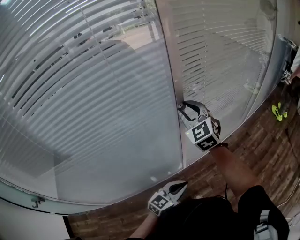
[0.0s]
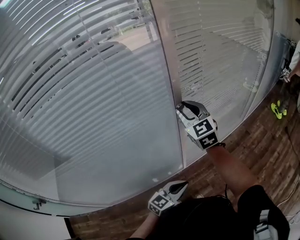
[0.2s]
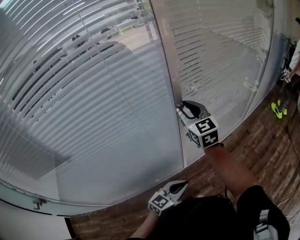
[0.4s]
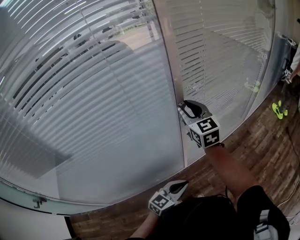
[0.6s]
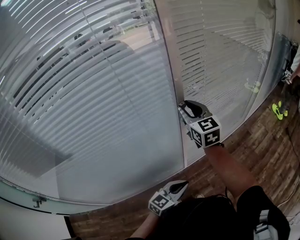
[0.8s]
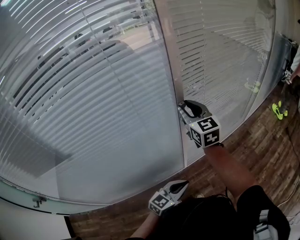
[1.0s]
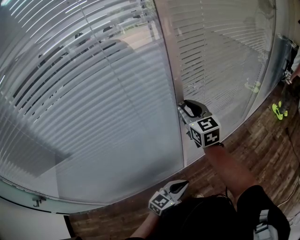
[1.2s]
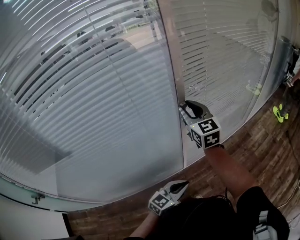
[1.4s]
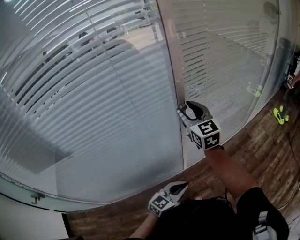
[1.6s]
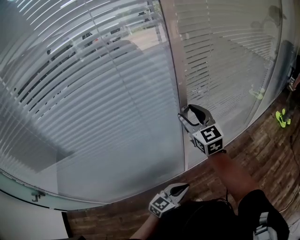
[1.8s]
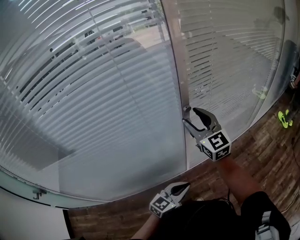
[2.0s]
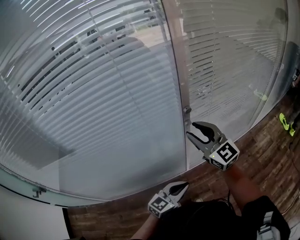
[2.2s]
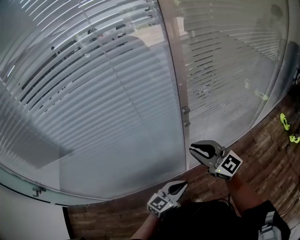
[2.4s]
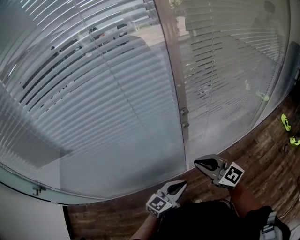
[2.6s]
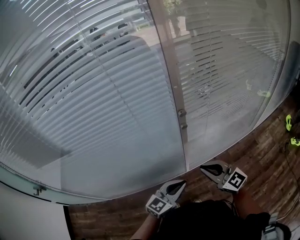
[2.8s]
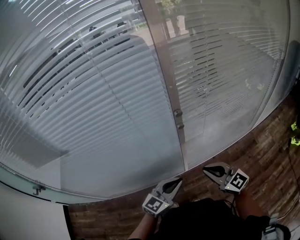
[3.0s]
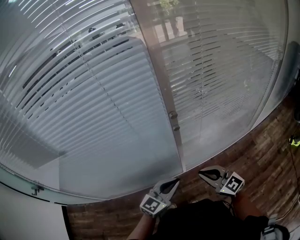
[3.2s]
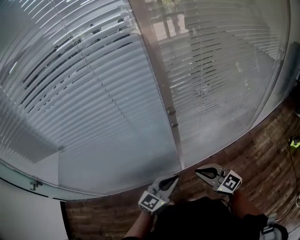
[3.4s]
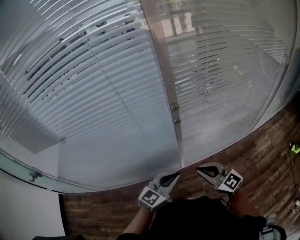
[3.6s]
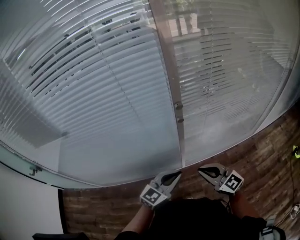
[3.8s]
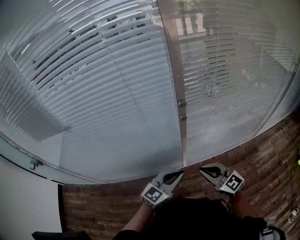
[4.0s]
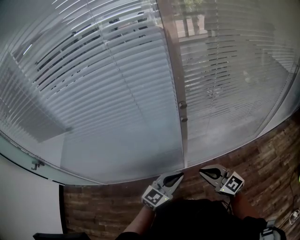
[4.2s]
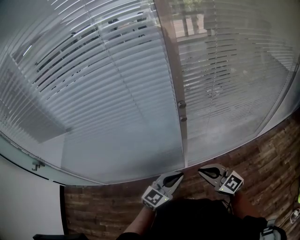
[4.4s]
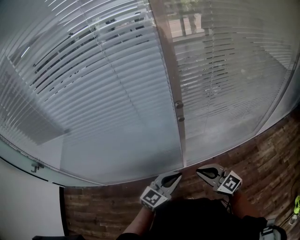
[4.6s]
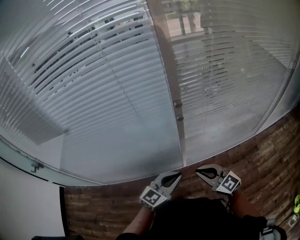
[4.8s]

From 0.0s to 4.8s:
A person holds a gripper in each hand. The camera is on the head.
From 0.0s to 1.6s: The right gripper swivels some 30 degrees.
From 1.6s to 3.2s: The right gripper changes place by about 25 cm, swivels approximately 40 degrees, and closes, while the left gripper changes place by roughly 5 cm.
From 3.2s to 4.8s: The grippers make only small movements.

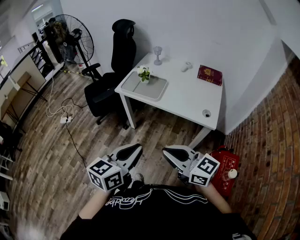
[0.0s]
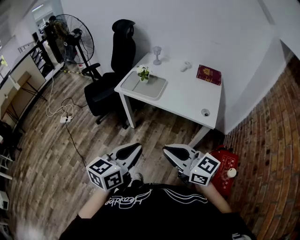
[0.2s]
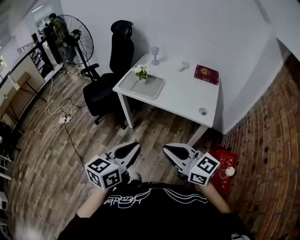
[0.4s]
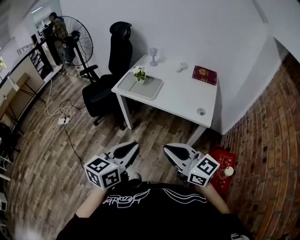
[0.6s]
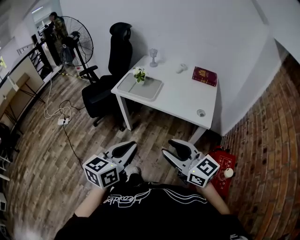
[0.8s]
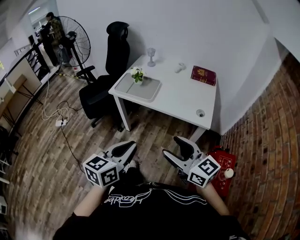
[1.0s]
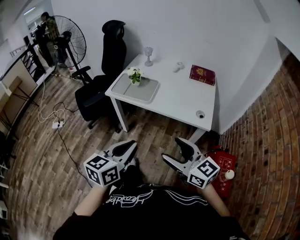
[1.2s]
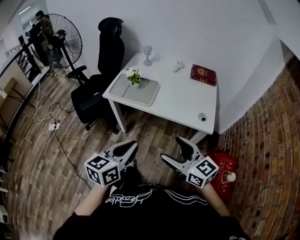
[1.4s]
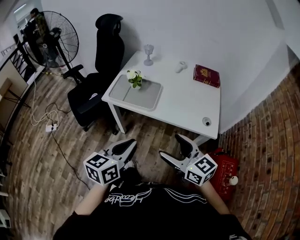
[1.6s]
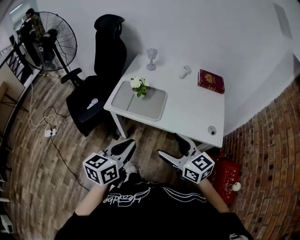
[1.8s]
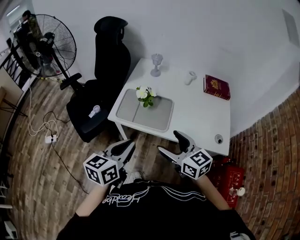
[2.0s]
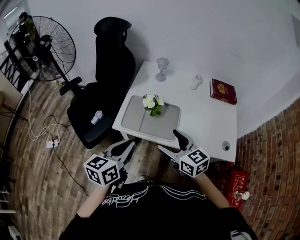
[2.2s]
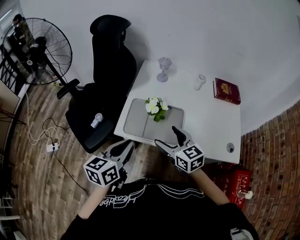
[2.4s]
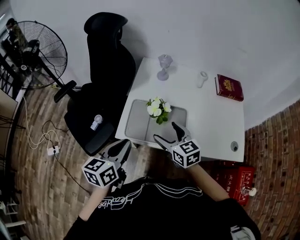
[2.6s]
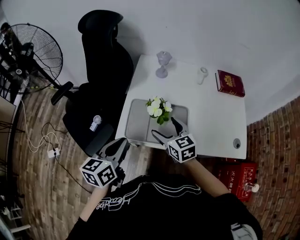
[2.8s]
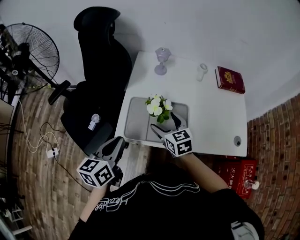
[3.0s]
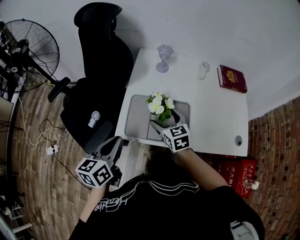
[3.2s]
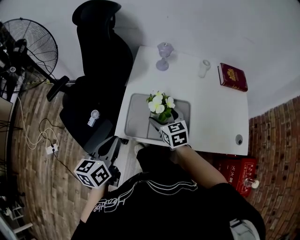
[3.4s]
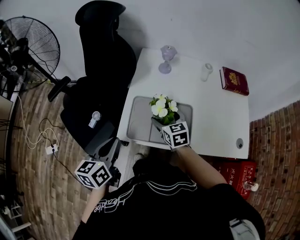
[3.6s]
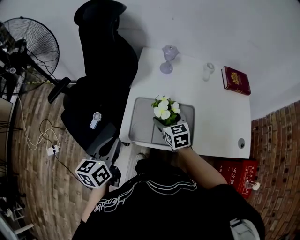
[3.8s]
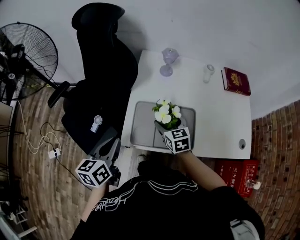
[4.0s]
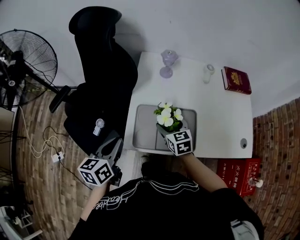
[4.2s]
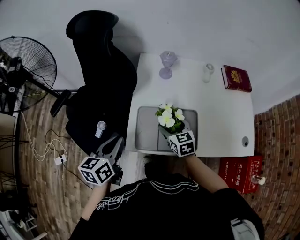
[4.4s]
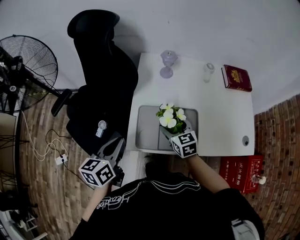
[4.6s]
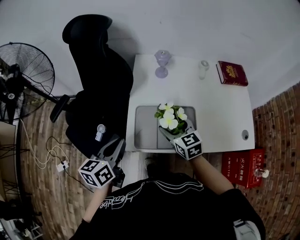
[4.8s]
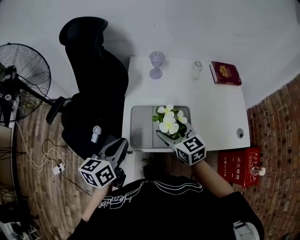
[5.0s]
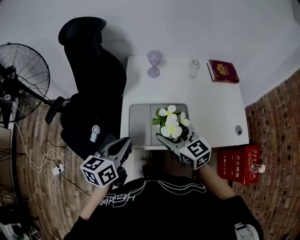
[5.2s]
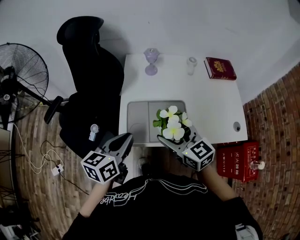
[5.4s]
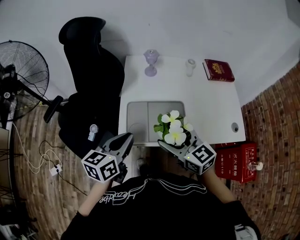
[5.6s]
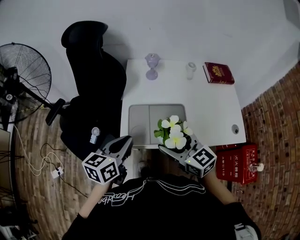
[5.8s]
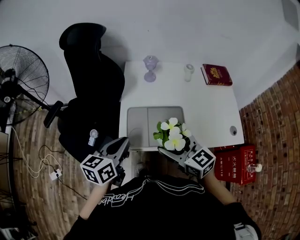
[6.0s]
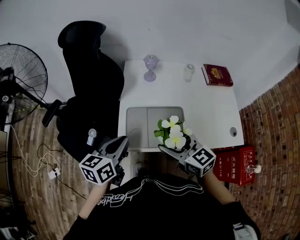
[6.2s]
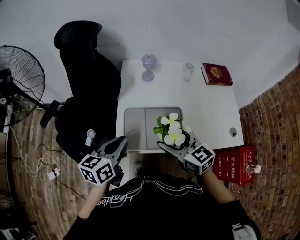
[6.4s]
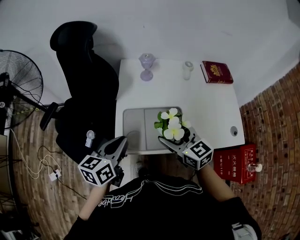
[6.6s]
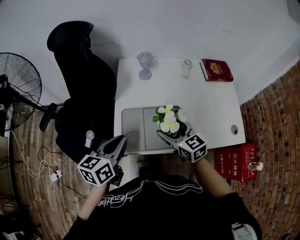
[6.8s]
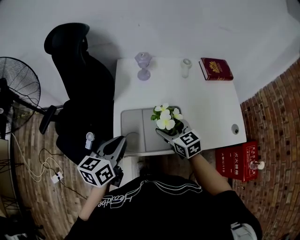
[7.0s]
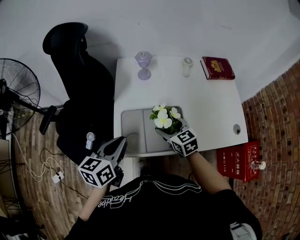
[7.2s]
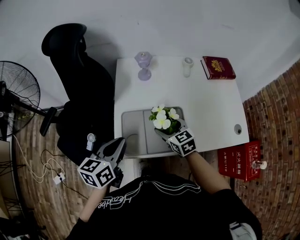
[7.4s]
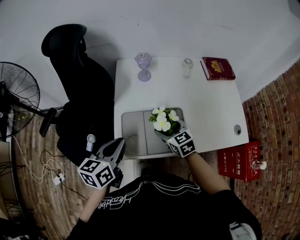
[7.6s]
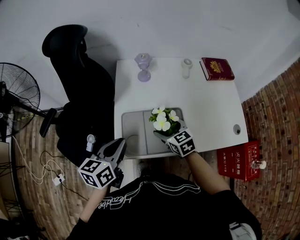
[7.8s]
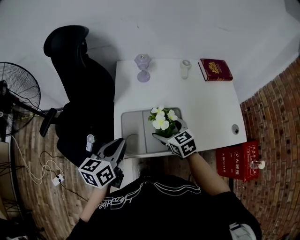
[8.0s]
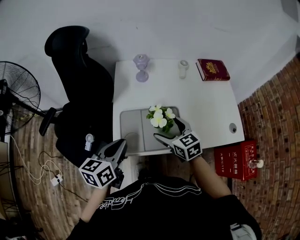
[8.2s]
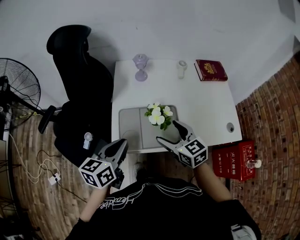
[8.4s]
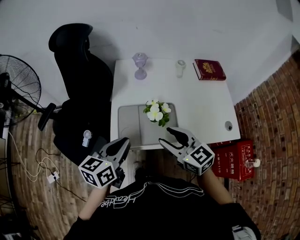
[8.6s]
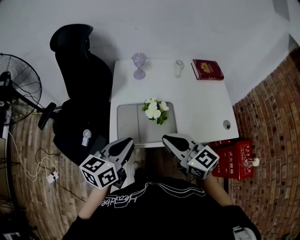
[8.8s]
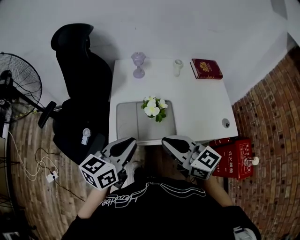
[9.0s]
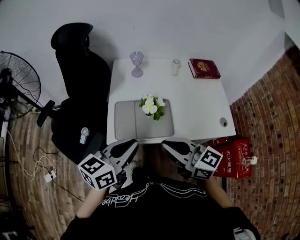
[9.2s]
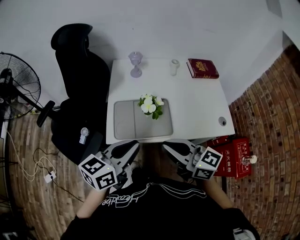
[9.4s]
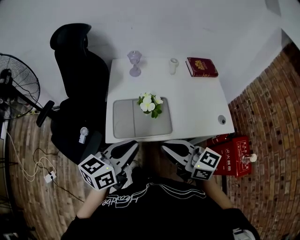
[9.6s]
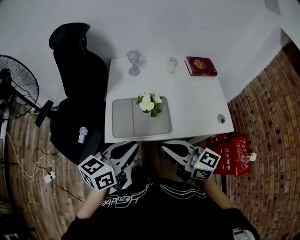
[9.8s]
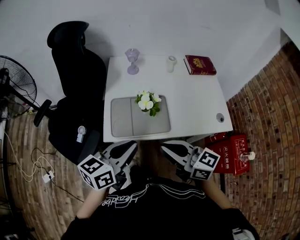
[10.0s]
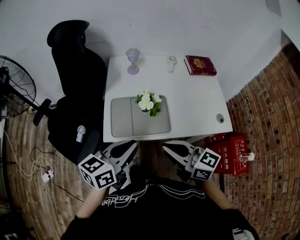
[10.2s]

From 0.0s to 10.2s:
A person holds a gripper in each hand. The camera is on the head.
From 0.0s to 1.4s: The grippers both shift forward by some 10 cm. The right gripper opens up.
From 1.4s to 3.0s: The two grippers travel together, forward and to the left, roughly 50 cm. The right gripper swivels approximately 30 degrees.
From 3.0s to 4.4s: The right gripper changes place by roughly 5 cm. Meanwhile the left gripper moves forward and to the left, roughly 10 cm.
From 4.4s to 5.8s: The left gripper is displaced to the right by approximately 5 cm, while the right gripper heads upward and backward, covering about 20 cm, and rotates roughly 20 degrees.
From 5.8s to 7.2s: The left gripper moves about 5 cm; the right gripper heads downward and forward, covering roughly 20 cm.
From 7.2s to 8.8s: The right gripper heads upward and backward, covering some 20 cm, turns by approximately 20 degrees, and closes up. The left gripper moves backward and to the right, roughly 10 cm.
From 8.8s to 10.2s: The grippers both shift backward by approximately 5 cm.

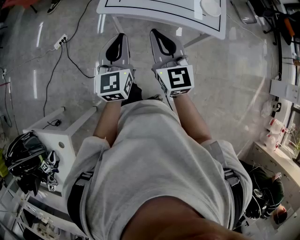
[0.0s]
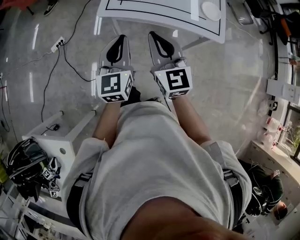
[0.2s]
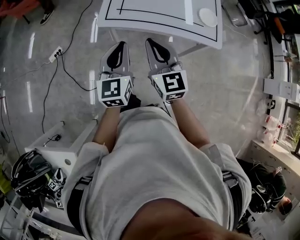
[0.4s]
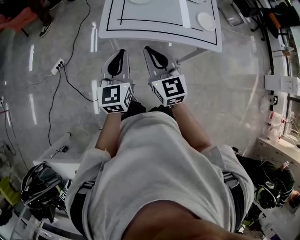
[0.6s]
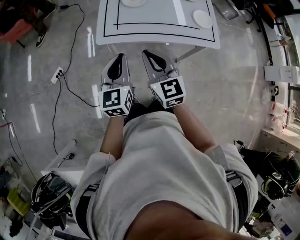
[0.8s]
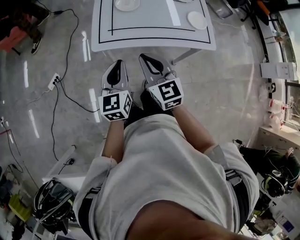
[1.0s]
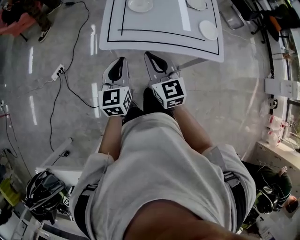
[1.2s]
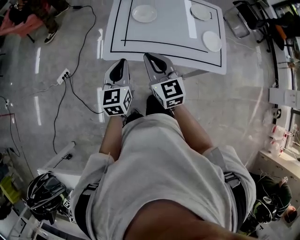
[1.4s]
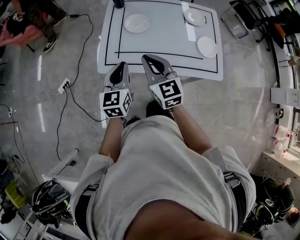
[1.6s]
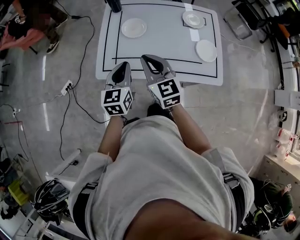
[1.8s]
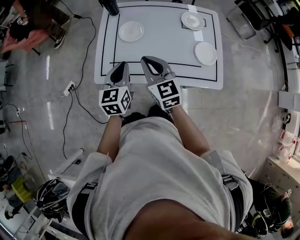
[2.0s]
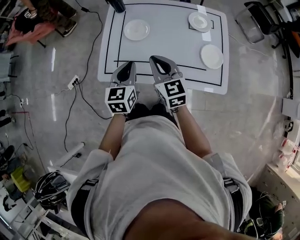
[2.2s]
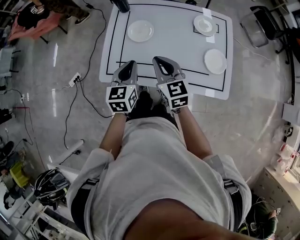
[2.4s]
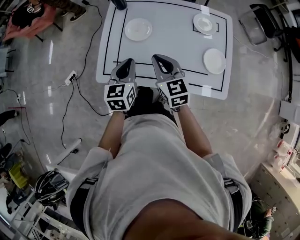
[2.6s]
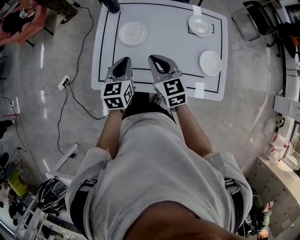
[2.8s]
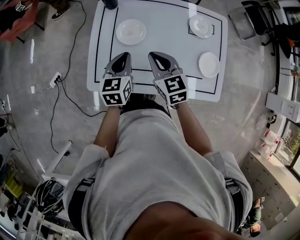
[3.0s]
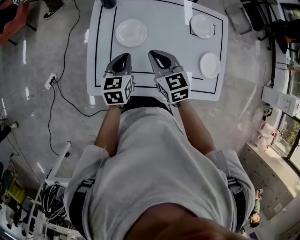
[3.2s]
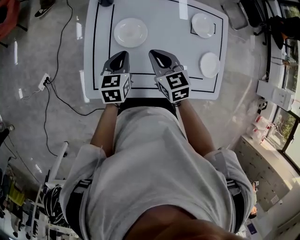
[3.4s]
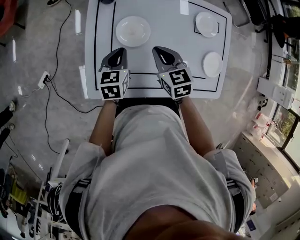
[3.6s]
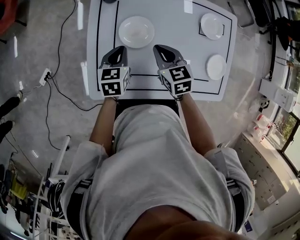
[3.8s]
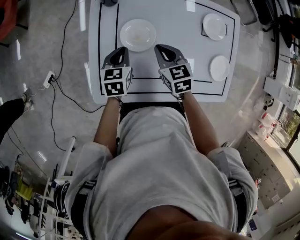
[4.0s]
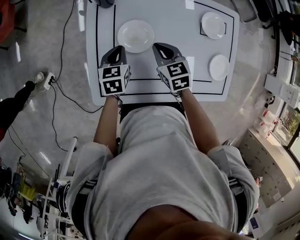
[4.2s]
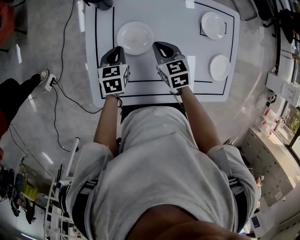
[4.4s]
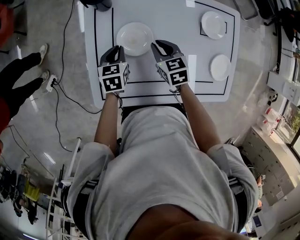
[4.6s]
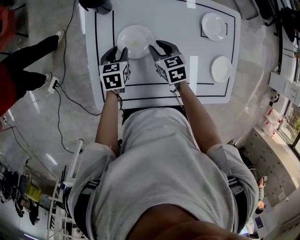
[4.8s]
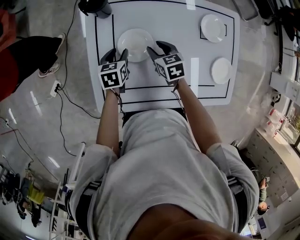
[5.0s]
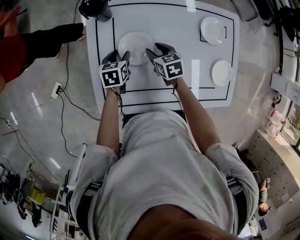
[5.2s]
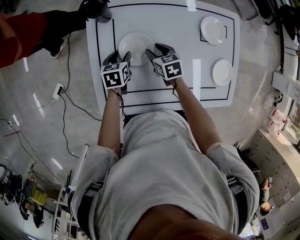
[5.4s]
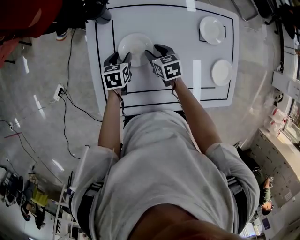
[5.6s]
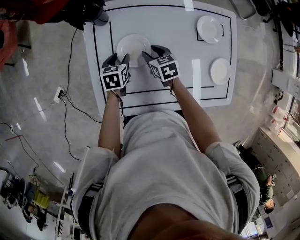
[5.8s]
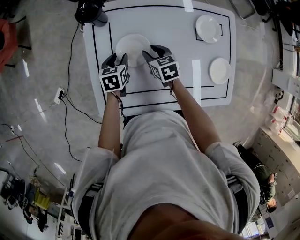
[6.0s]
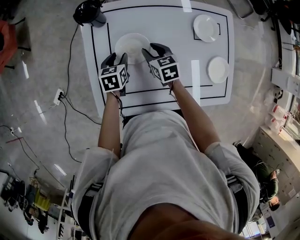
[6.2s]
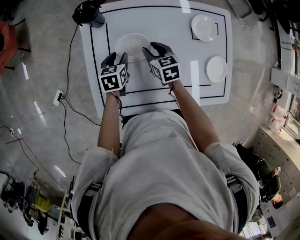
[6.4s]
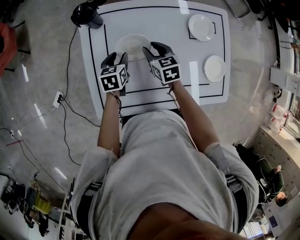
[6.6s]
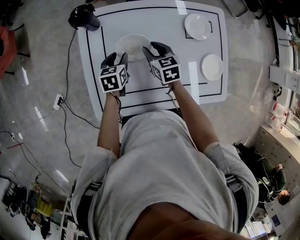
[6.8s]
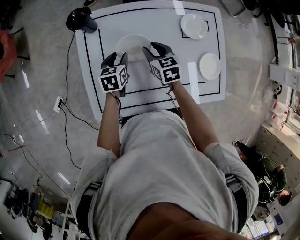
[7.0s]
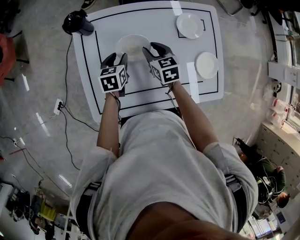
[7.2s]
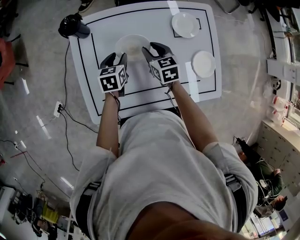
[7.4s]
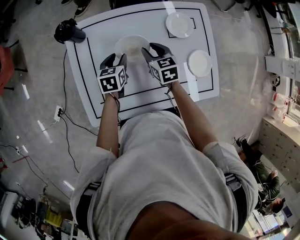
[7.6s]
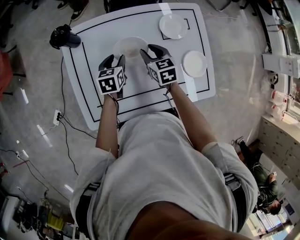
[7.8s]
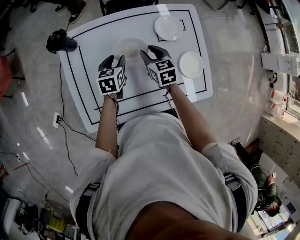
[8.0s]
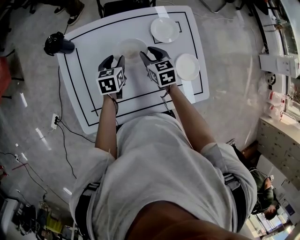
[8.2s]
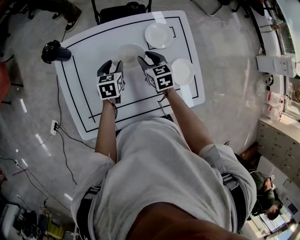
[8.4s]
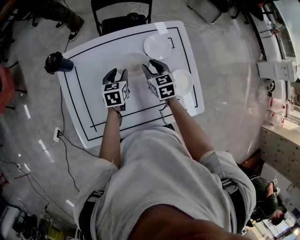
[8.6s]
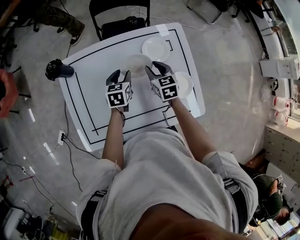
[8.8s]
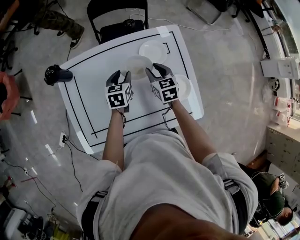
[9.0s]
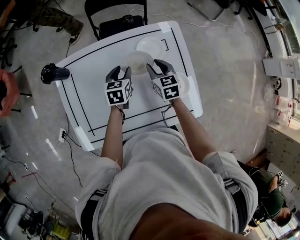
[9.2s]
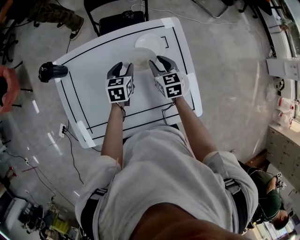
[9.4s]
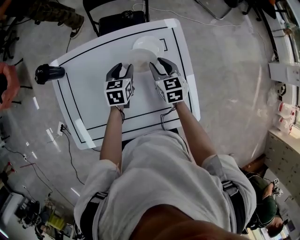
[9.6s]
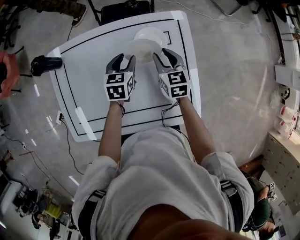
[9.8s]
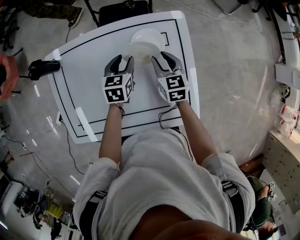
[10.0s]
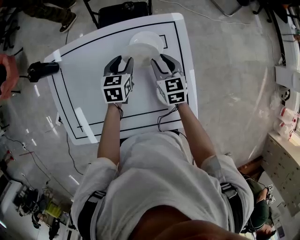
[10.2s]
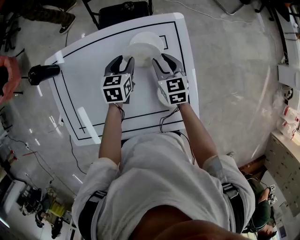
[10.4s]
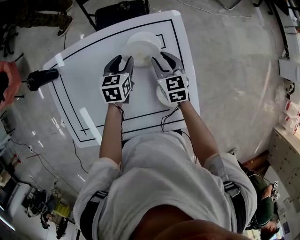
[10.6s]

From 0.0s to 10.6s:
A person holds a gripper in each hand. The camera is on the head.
From 0.0s to 1.6s: The two grippers go approximately 25 cm forward.
From 1.6s to 3.0s: Both grippers travel together forward and to the right, roughly 25 cm.
From 3.0s to 4.6s: The grippers both shift forward and downward by some 20 cm.
From 4.6s to 6.0s: The right gripper opens its fingers. The left gripper opens up.
From 6.0s to 7.6s: Both grippers move to the right and upward, about 15 cm.
From 7.6s to 9.0s: Both grippers travel together to the right, approximately 15 cm.
From 9.0s to 10.6s: Both grippers travel together to the right and forward, some 15 cm.
